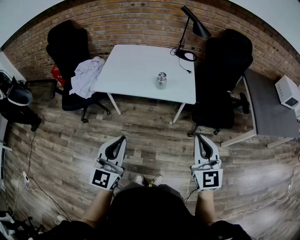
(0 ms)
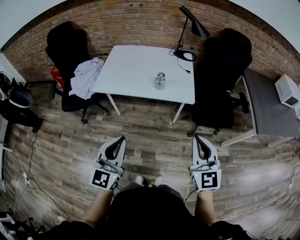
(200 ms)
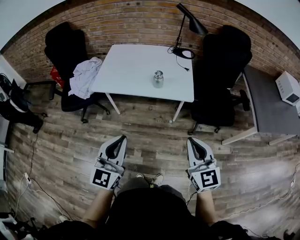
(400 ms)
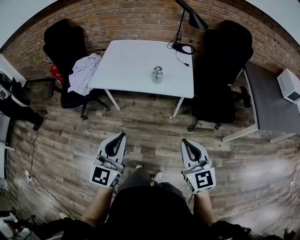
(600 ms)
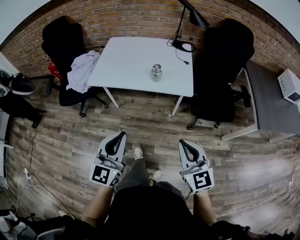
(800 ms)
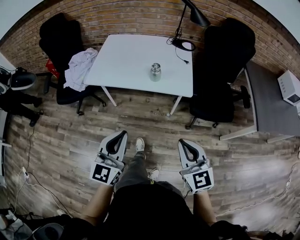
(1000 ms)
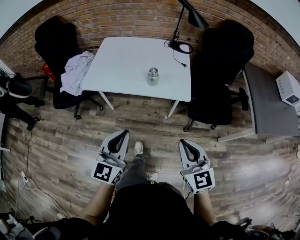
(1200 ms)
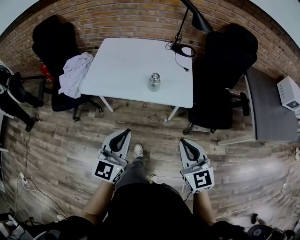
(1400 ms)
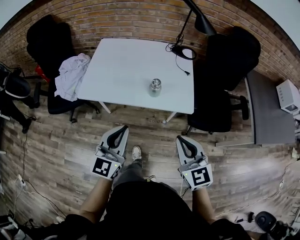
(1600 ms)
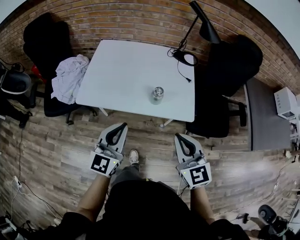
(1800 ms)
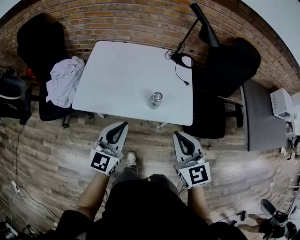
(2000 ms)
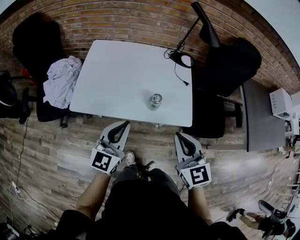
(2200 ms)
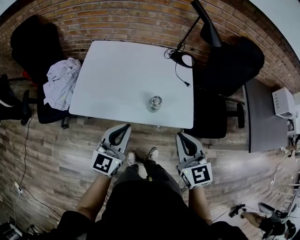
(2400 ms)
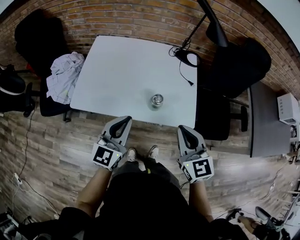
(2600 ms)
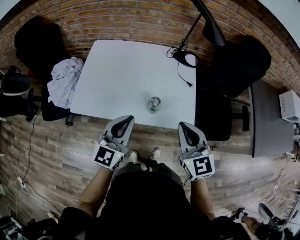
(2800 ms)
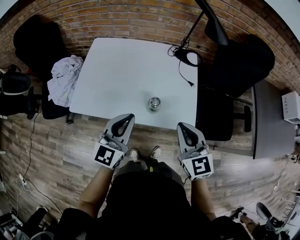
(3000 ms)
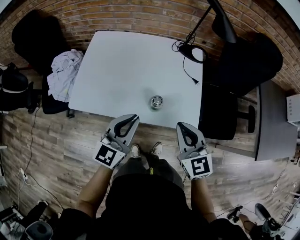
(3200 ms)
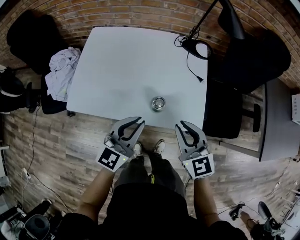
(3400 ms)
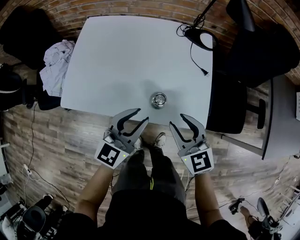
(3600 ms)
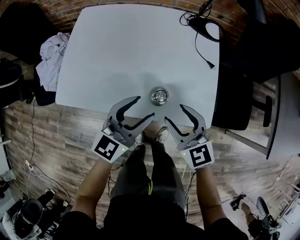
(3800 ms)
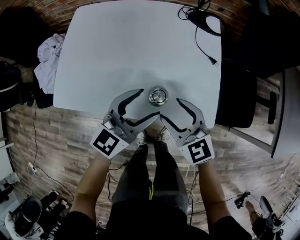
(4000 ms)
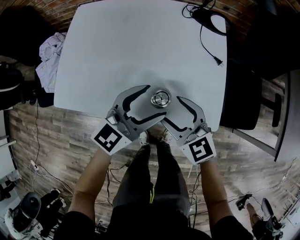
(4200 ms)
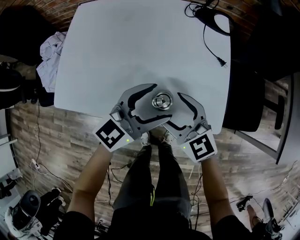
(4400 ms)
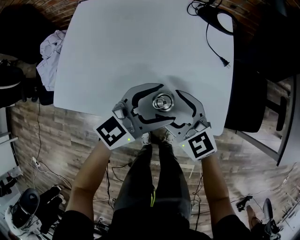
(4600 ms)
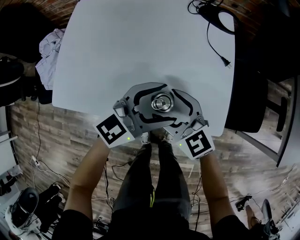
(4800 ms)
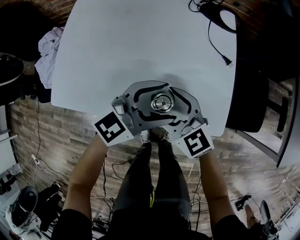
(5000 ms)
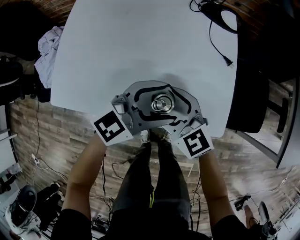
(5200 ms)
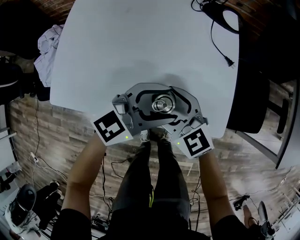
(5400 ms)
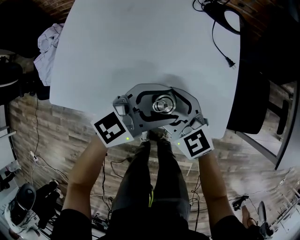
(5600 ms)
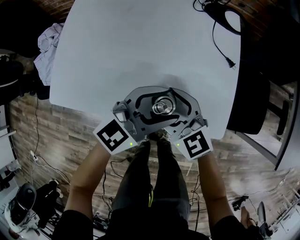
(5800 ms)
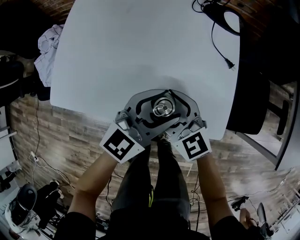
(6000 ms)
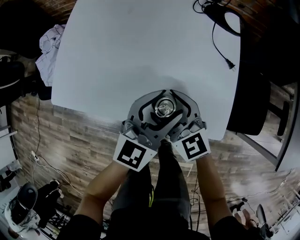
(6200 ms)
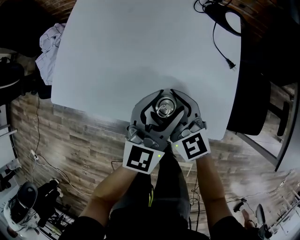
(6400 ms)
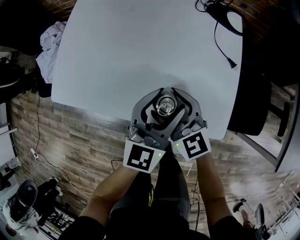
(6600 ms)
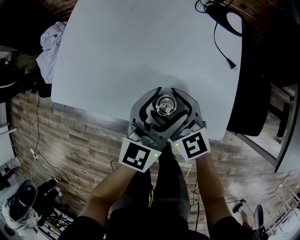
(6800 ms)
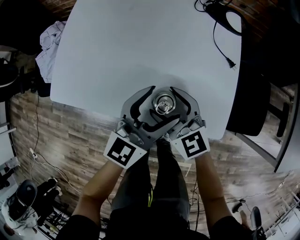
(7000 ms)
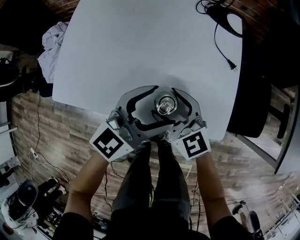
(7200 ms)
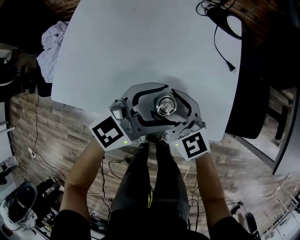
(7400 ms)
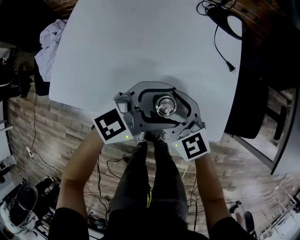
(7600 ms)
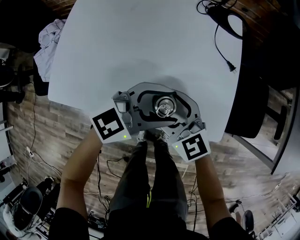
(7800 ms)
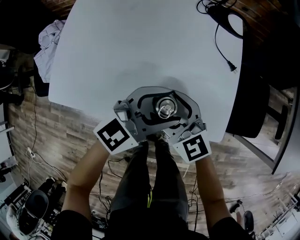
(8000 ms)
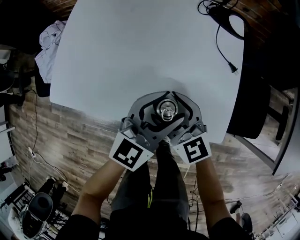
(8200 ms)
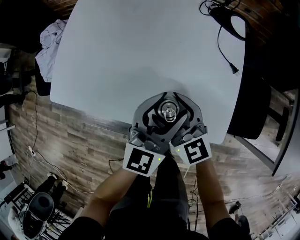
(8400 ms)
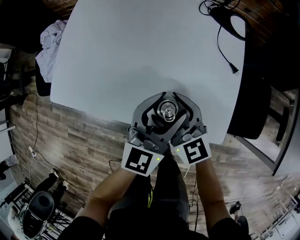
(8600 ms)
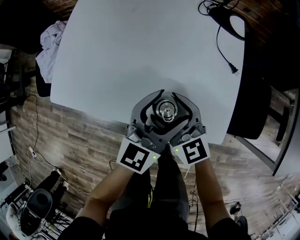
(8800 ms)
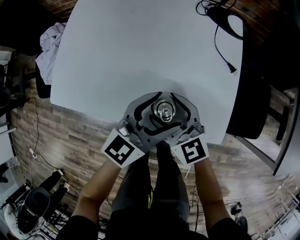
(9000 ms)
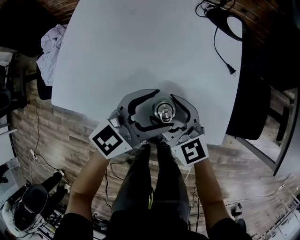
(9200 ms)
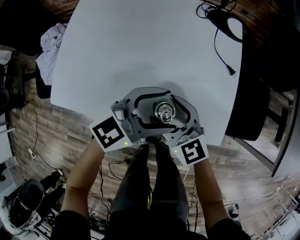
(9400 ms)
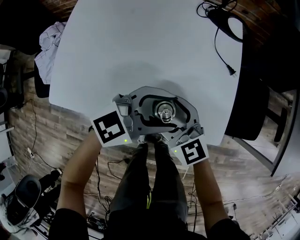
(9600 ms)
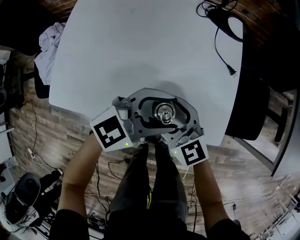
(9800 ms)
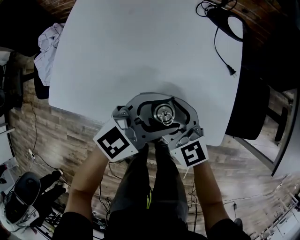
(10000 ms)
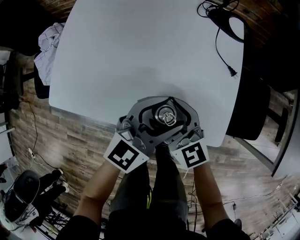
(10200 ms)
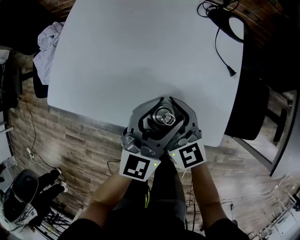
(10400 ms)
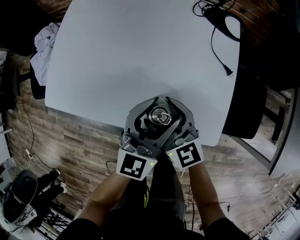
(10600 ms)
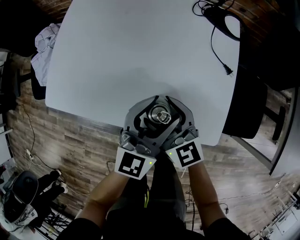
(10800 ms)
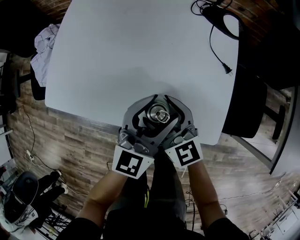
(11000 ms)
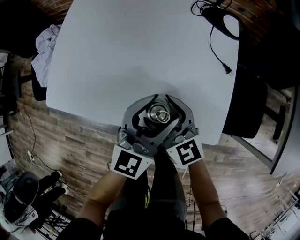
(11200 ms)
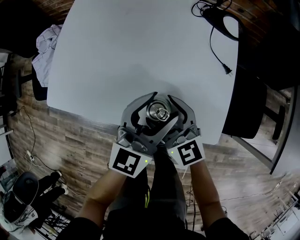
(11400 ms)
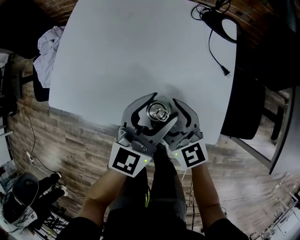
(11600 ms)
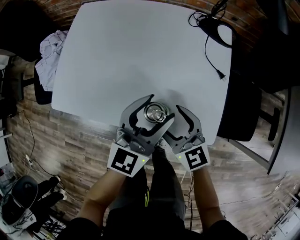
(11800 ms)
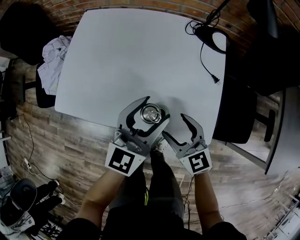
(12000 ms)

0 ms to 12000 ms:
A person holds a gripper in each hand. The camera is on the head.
0 ms to 1600 ms: The left gripper moves forward, some 20 cm, while the right gripper is displaced forward and downward by some 15 cm.
1600 ms to 3000 ms: Both grippers travel together forward, some 20 cm.
3000 ms to 4400 ms: The left gripper moves downward, forward and to the right, roughly 20 cm, changes its angle by roughly 30 degrees, and opens. Meanwhile the right gripper heads downward and forward, covering about 20 cm, changes its angle by roughly 20 degrees, and opens its fingers.
4400 ms to 6000 ms: The grippers stay close to where they were, moving slightly.
6000 ms to 7600 ms: The left gripper changes its angle by some 20 degrees.
7600 ms to 9000 ms: The left gripper swivels about 30 degrees.
9000 ms to 10400 ms: The left gripper turns by about 20 degrees.
10400 ms to 12000 ms: The left gripper moves upward, some 5 cm, while the right gripper is displaced to the right by approximately 5 cm.

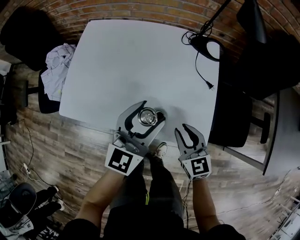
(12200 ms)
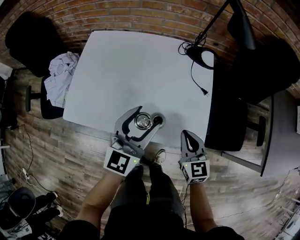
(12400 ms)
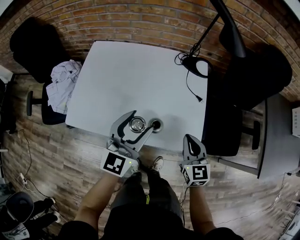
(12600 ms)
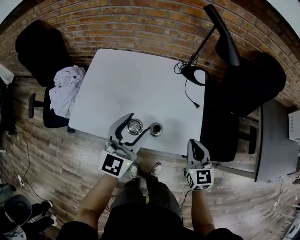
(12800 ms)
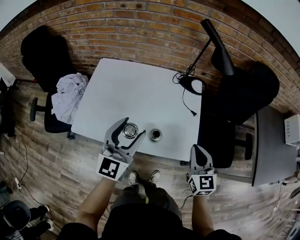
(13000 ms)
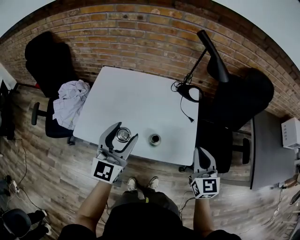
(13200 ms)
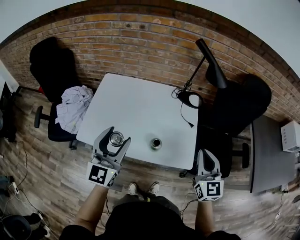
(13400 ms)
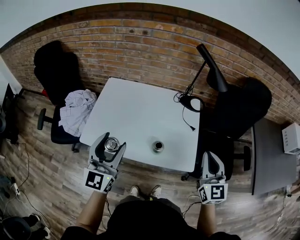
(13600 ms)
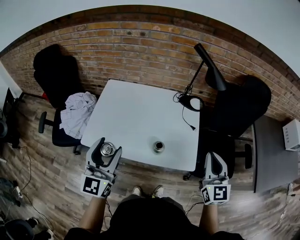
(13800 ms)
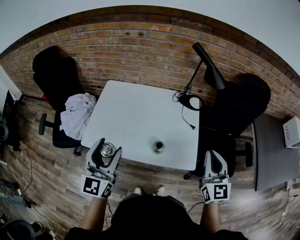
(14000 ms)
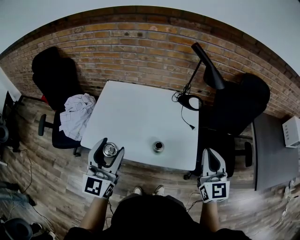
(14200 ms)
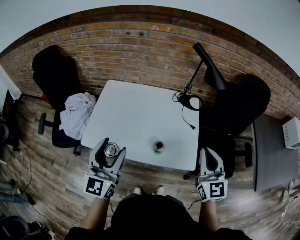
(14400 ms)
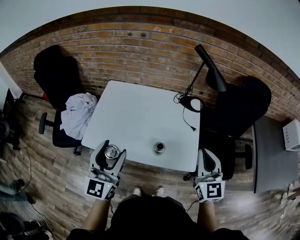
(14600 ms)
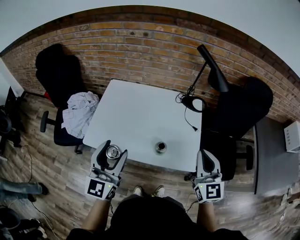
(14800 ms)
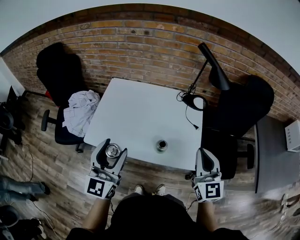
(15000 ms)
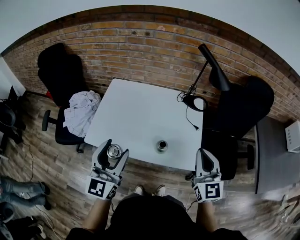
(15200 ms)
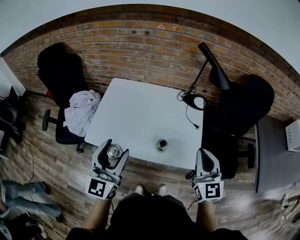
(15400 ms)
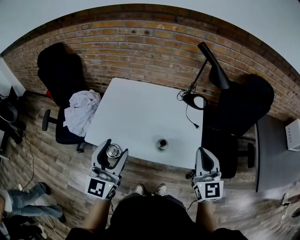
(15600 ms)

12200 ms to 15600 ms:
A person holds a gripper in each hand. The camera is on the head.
12200 ms to 13800 ms: The left gripper travels upward, to the left and backward by approximately 25 cm, and changes its angle by approximately 20 degrees; the right gripper moves upward, approximately 25 cm, turns by approximately 30 degrees, and closes its fingers.
13800 ms to 15600 ms: The right gripper travels to the left by approximately 5 cm.

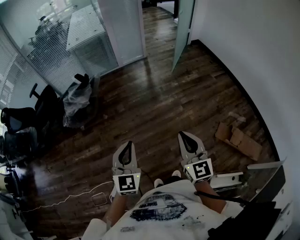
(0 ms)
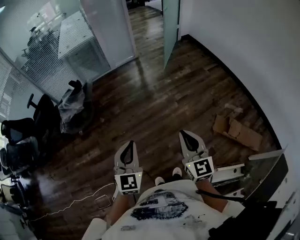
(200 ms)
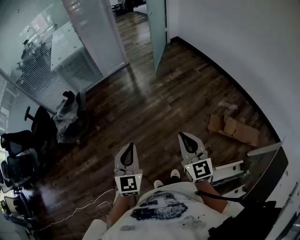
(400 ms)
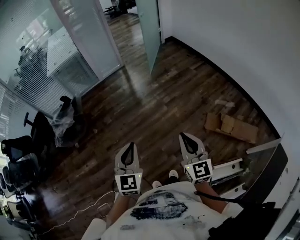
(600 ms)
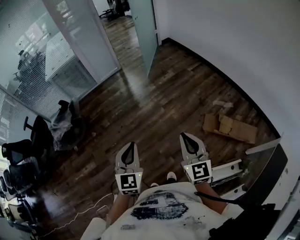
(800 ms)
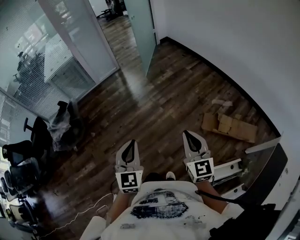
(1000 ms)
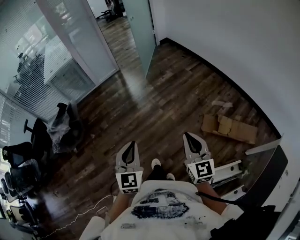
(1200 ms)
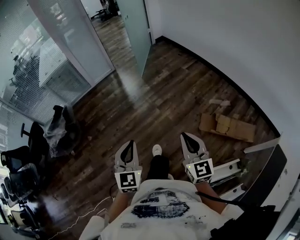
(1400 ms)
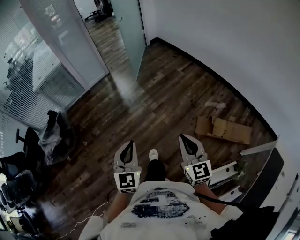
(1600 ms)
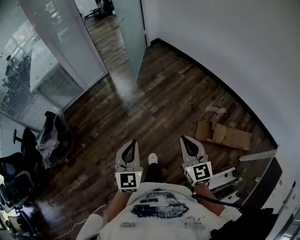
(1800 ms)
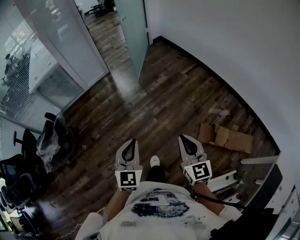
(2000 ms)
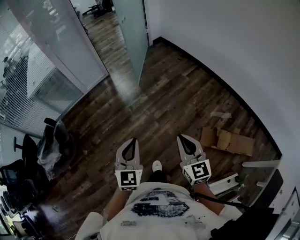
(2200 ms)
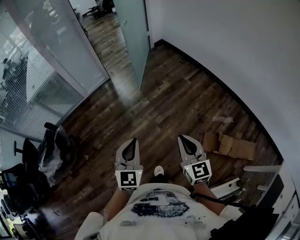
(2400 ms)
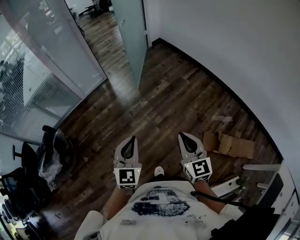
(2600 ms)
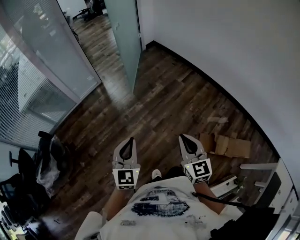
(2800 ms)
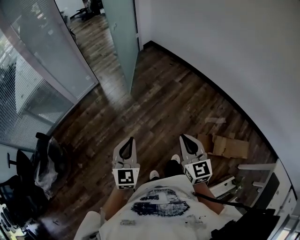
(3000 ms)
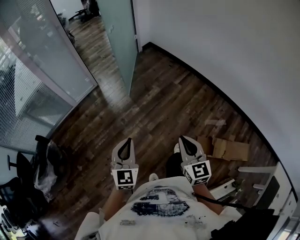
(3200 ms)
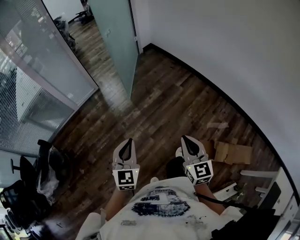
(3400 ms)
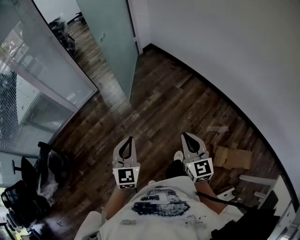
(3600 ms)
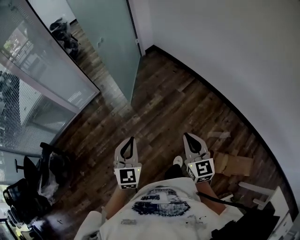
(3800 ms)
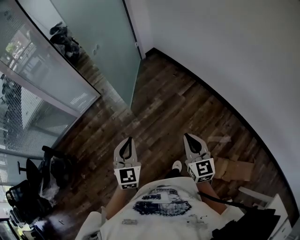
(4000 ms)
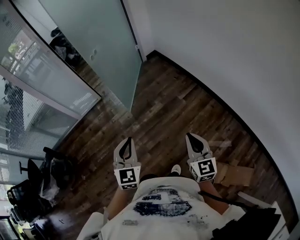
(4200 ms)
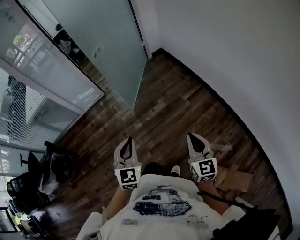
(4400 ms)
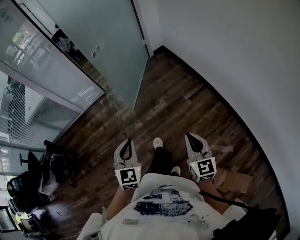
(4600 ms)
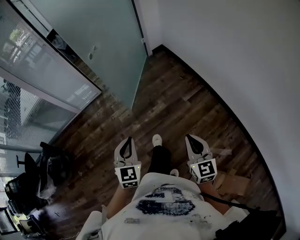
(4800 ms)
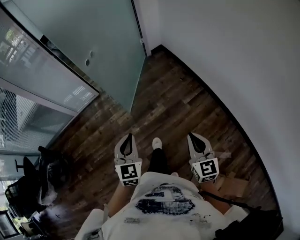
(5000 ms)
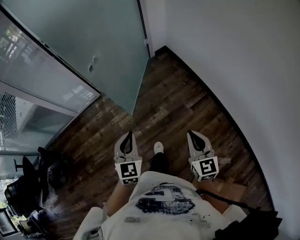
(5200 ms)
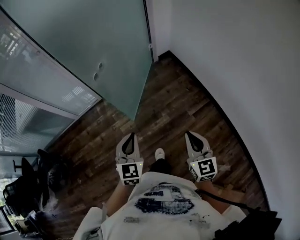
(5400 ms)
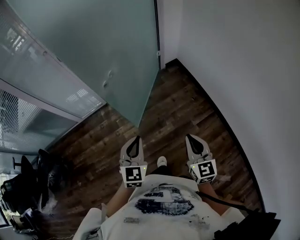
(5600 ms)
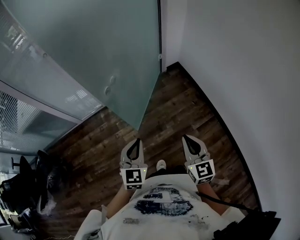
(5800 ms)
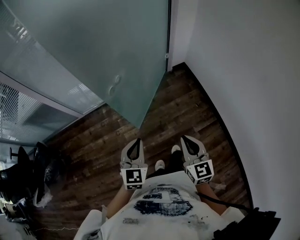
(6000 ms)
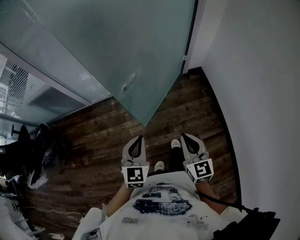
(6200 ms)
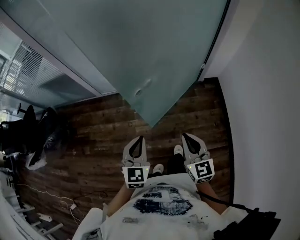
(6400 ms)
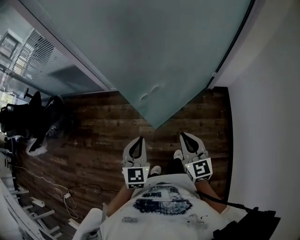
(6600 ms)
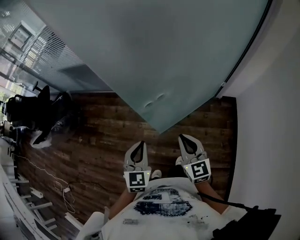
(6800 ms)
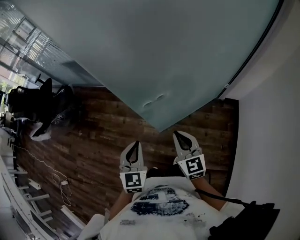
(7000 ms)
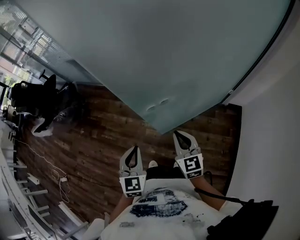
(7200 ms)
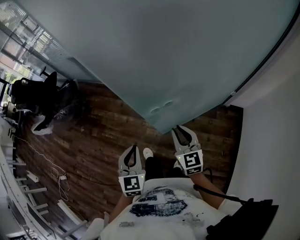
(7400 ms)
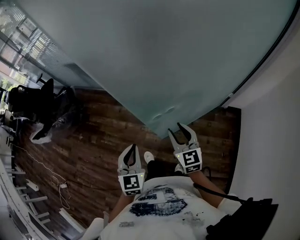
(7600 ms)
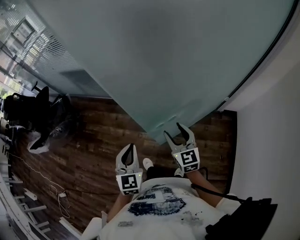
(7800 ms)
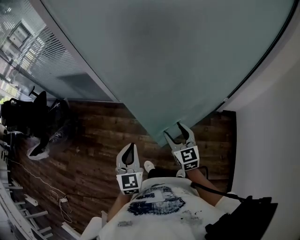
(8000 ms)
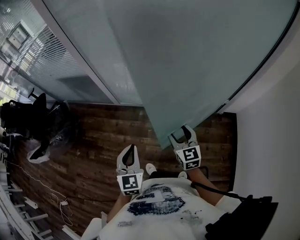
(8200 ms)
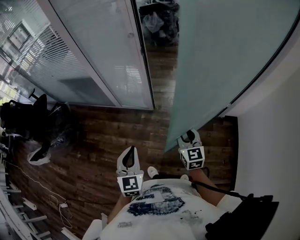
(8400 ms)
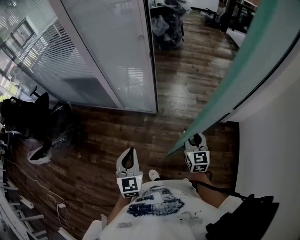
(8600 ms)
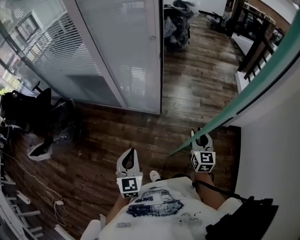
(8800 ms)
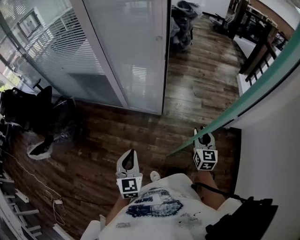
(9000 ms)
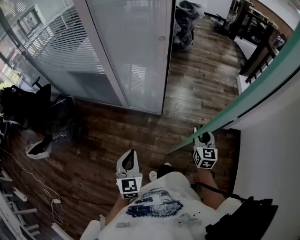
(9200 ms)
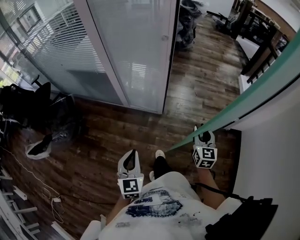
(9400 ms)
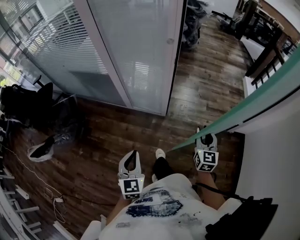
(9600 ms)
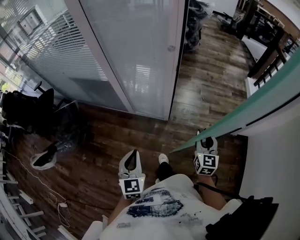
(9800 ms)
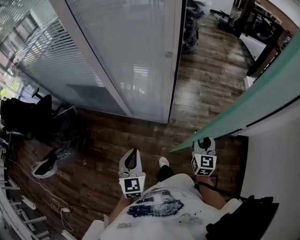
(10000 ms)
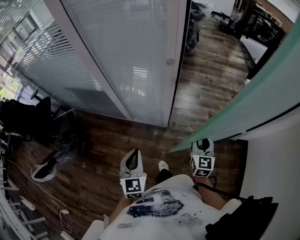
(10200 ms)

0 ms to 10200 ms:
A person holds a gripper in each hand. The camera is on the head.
0 ms to 1400 ms: The two grippers go roughly 25 cm to the right.
1400 ms to 3000 ms: The grippers both shift forward by some 35 cm.
3000 ms to 4400 ms: The grippers both shift forward and to the right by approximately 35 cm.
4400 ms to 5800 ms: Both grippers move forward, approximately 35 cm.
5800 ms to 7200 ms: The right gripper shifts by about 25 cm, and turns by approximately 50 degrees; the left gripper shifts by about 10 cm, and changes its angle by approximately 50 degrees.
7200 ms to 8800 ms: The left gripper moves to the left and forward, roughly 25 cm, while the right gripper travels forward by approximately 15 cm, rotates some 20 degrees, and opens.
8800 ms to 10200 ms: The grippers both shift forward by approximately 20 cm.
